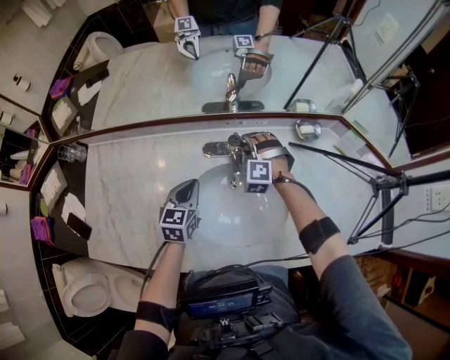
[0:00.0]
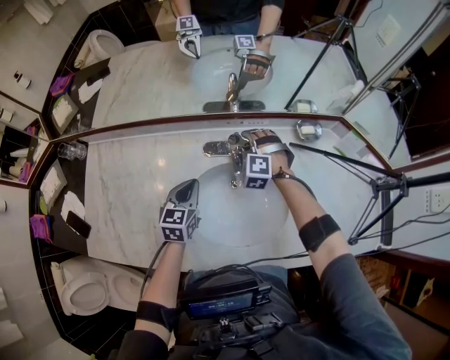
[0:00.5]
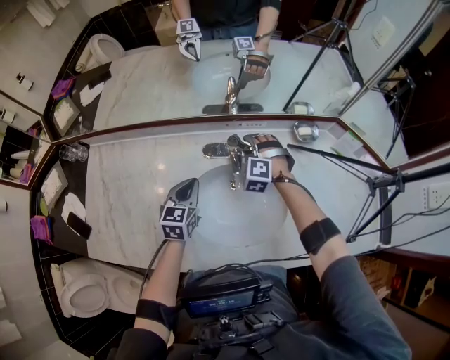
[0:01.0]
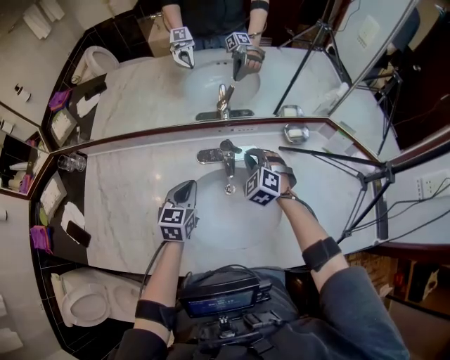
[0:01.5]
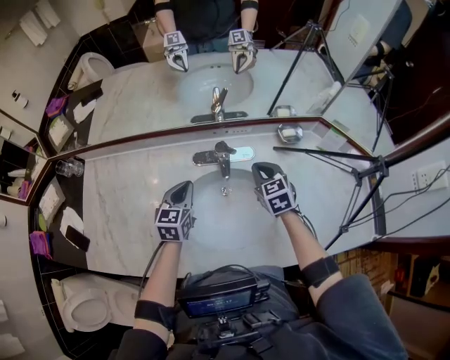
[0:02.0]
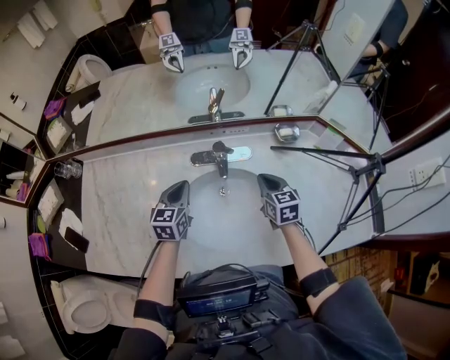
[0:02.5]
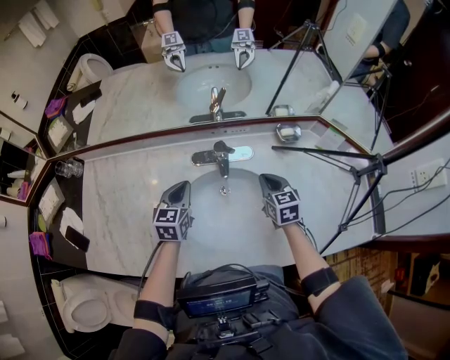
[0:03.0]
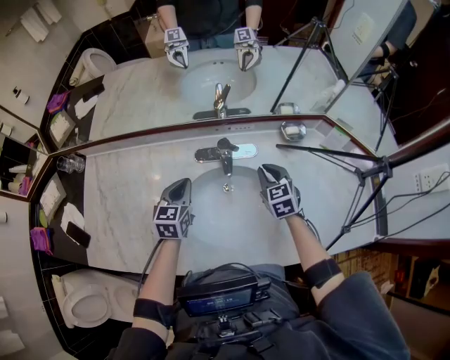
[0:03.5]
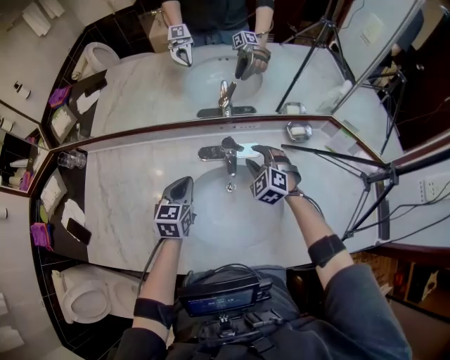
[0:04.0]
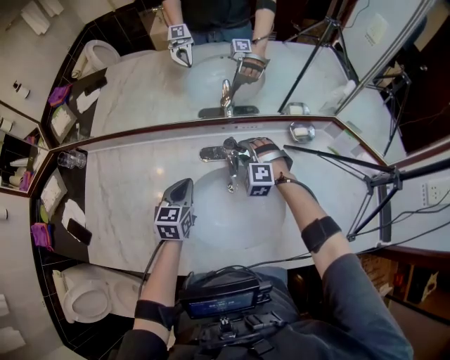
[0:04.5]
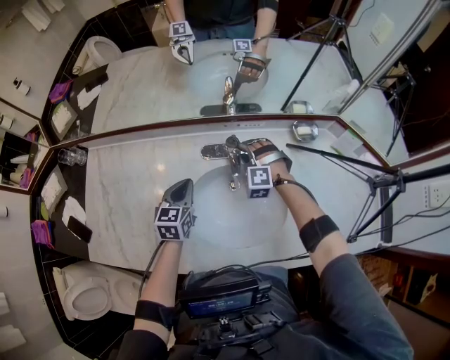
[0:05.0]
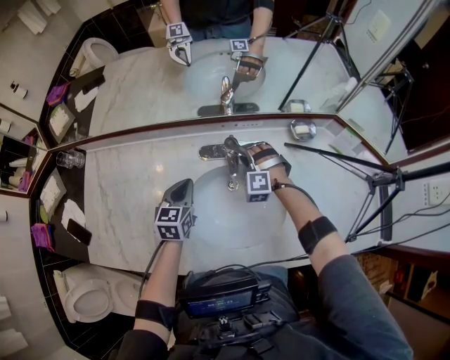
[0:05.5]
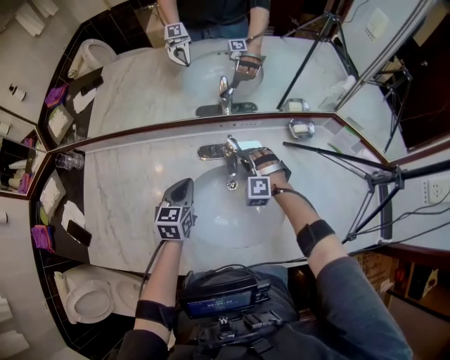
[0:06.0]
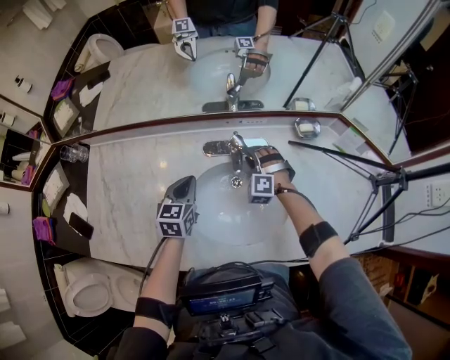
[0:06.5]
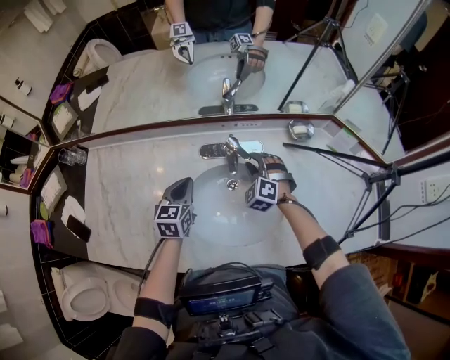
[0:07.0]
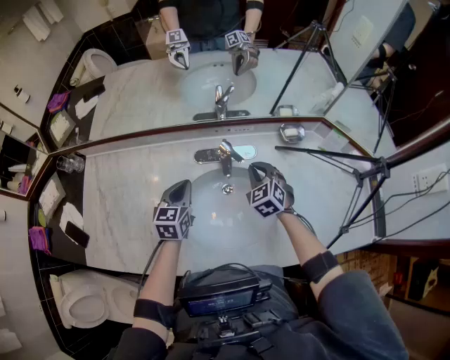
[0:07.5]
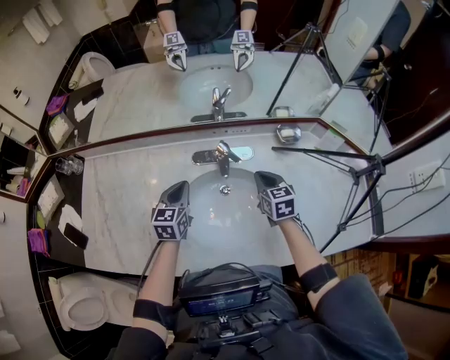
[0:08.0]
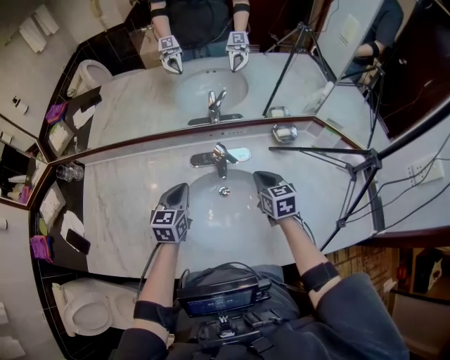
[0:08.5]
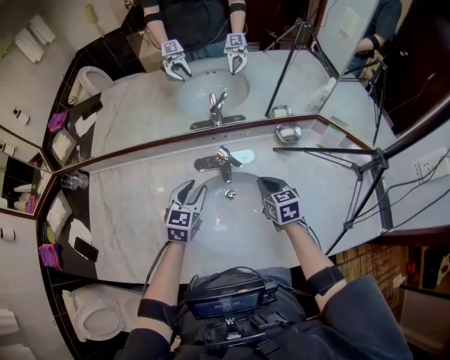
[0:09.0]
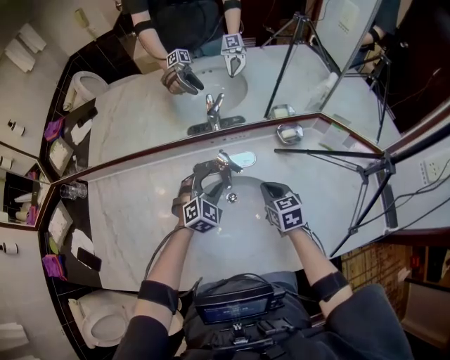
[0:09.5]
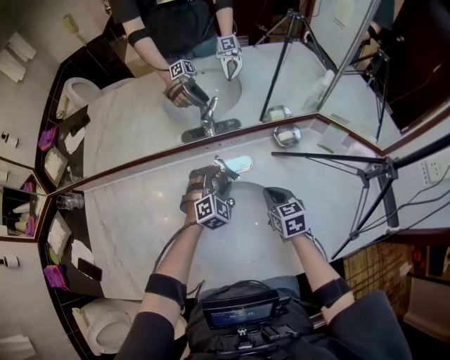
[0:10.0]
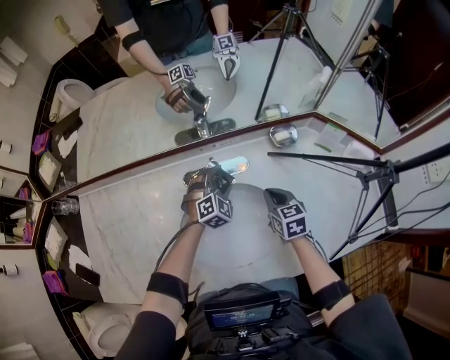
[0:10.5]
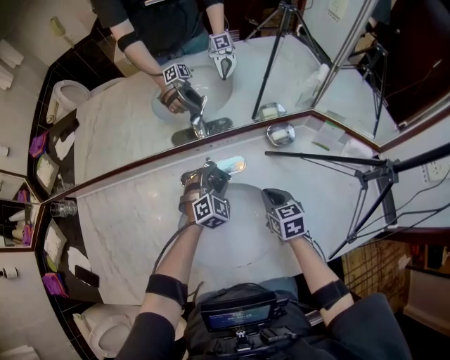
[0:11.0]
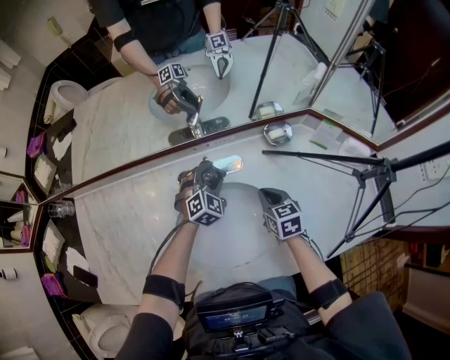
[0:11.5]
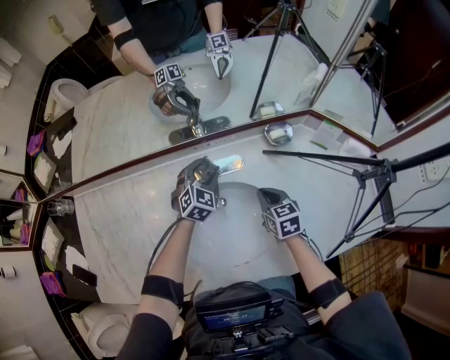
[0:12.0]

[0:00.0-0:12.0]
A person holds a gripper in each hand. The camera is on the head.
0:00.0 to 0:02.0: The right gripper moves to the right, backward and upward, roughly 15 cm, rotates around the line of its fingers by roughly 70 degrees, clockwise from behind, and closes up.
0:02.0 to 0:04.0: The right gripper shifts by approximately 5 cm, rotates around the line of its fingers by approximately 40 degrees, counterclockwise from behind, and opens its fingers.
0:04.0 to 0:06.0: The right gripper goes roughly 10 cm downward, and rotates about 30 degrees.
0:06.0 to 0:08.0: The right gripper shifts approximately 15 cm to the right, upward and backward, rotates around the line of its fingers by about 80 degrees, clockwise from behind, and closes up.
0:08.0 to 0:10.0: The left gripper goes approximately 20 cm to the right, forward and downward, rolls clockwise, seen from behind, by about 60 degrees, and opens up.
0:10.0 to 0:12.0: The grippers make only small movements.

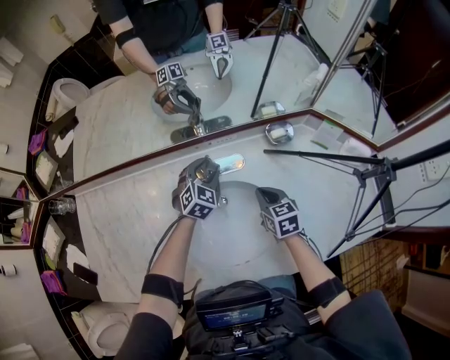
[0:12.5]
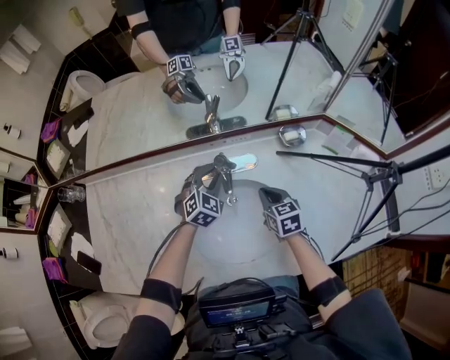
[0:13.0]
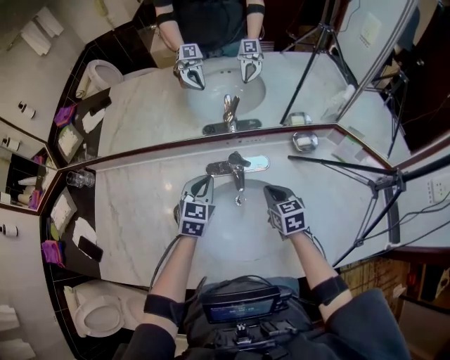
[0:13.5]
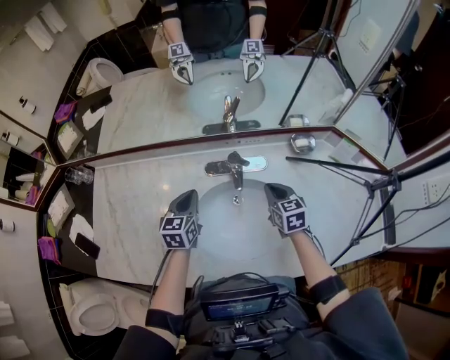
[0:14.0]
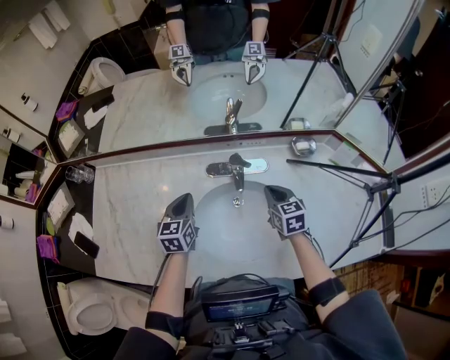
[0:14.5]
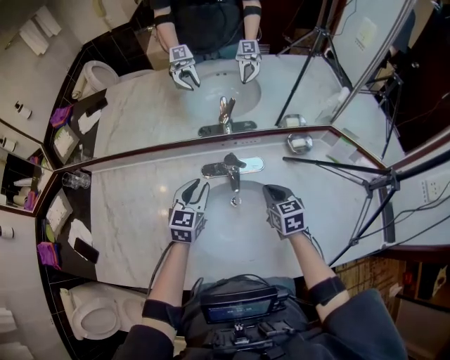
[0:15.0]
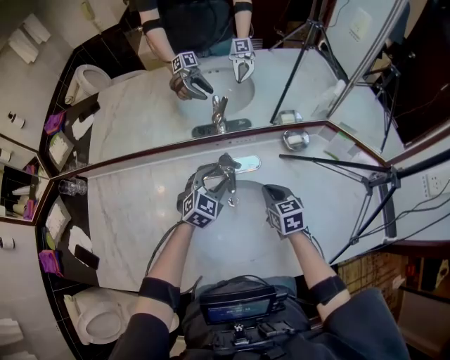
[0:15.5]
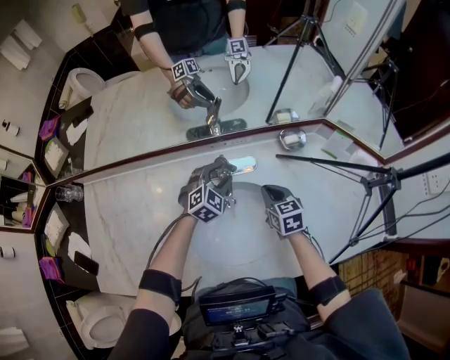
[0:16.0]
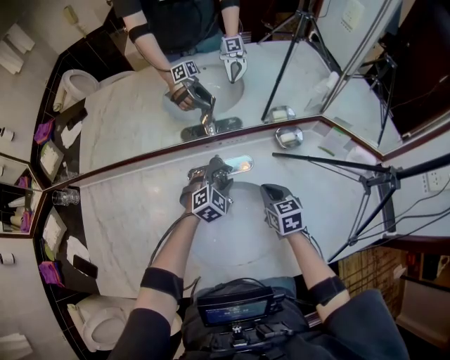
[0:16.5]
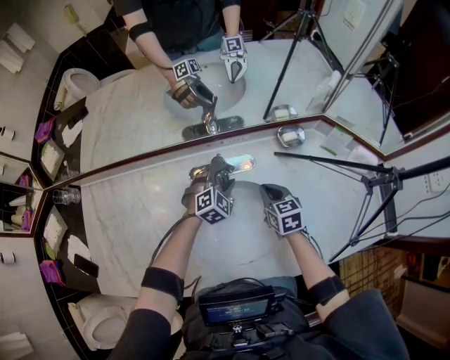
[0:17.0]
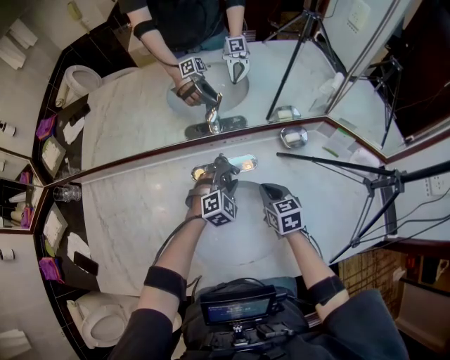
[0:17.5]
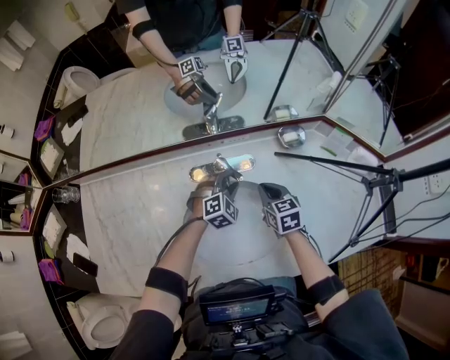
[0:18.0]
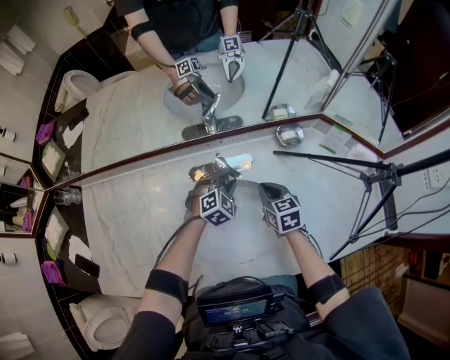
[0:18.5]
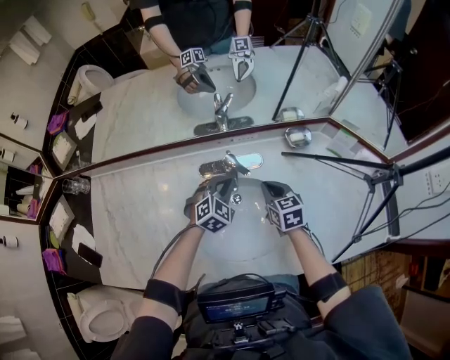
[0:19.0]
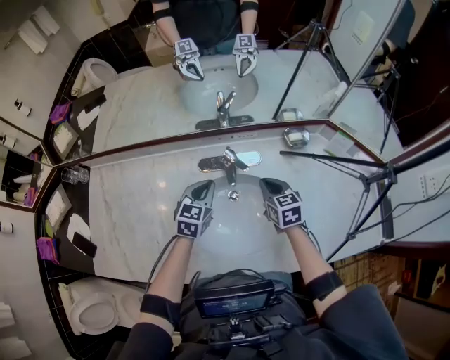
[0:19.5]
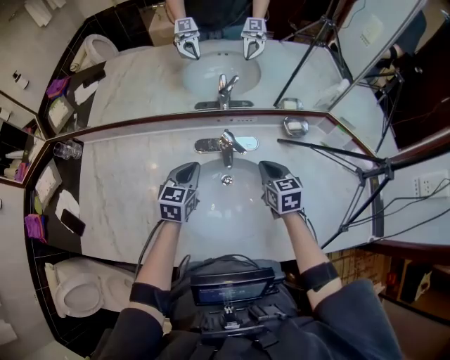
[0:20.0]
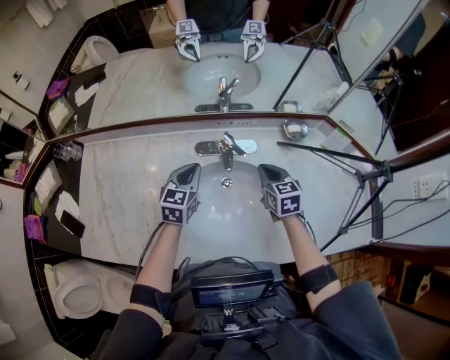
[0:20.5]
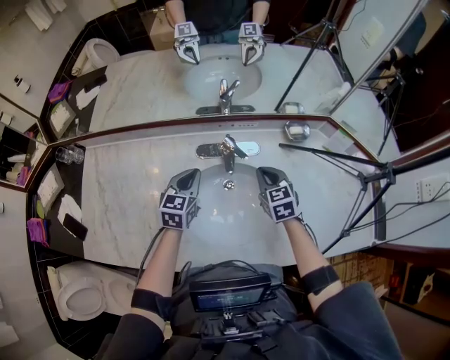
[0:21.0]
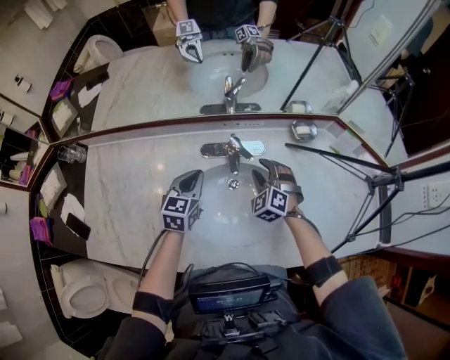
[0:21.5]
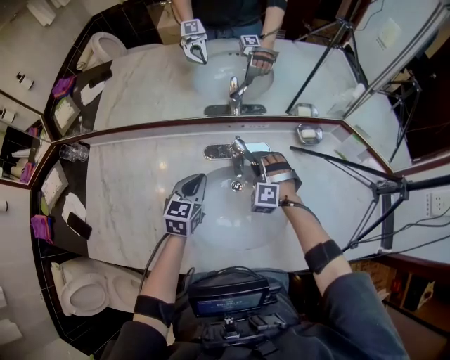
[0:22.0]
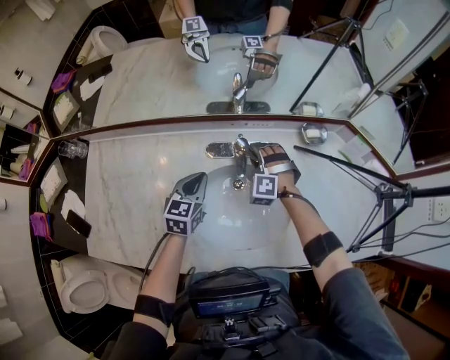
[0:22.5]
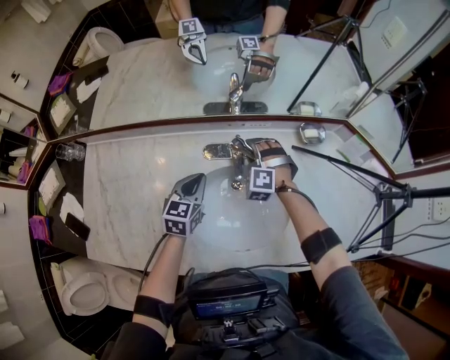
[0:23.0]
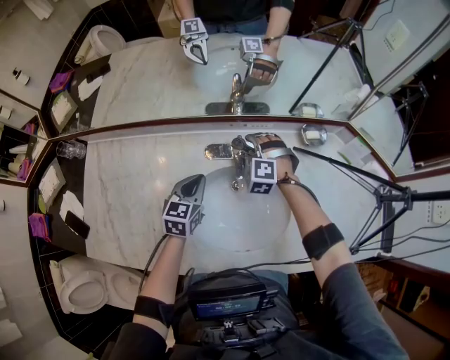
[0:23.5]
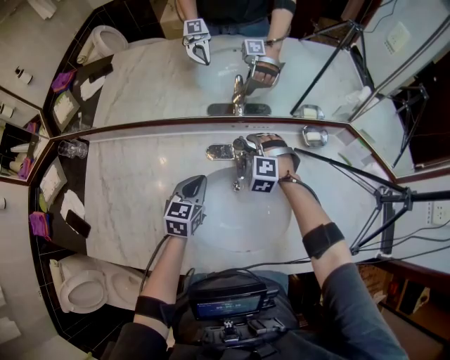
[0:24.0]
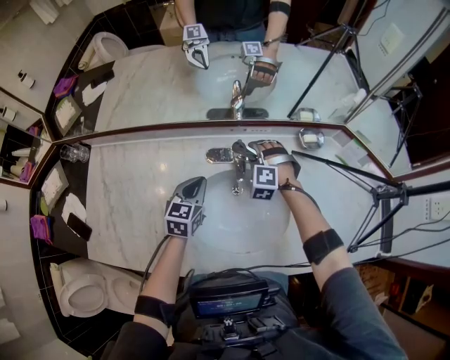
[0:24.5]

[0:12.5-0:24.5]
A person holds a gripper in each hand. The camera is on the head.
0:12.5 to 0:14.5: The left gripper heads to the left and backward, covering approximately 25 cm, rolls counterclockwise, seen from behind, by approximately 50 degrees, and closes up. Meanwhile the right gripper heads to the left, covering roughly 5 cm.
0:14.5 to 0:16.5: The right gripper moves about 5 cm. Meanwhile the left gripper goes some 25 cm to the right, forward and downward, rolls clockwise, seen from behind, by some 60 degrees, and opens.
0:16.5 to 0:18.5: There are only small adjustments of the grippers.
0:18.5 to 0:20.5: The right gripper is displaced upward by about 5 cm; the left gripper travels to the left, upward and backward by roughly 20 cm, rotates around the line of its fingers by some 50 degrees, counterclockwise from behind, and closes.
0:20.5 to 0:22.5: The right gripper goes about 15 cm to the left, forward and downward, rotates around the line of its fingers by about 80 degrees, counterclockwise from behind, and opens.
0:22.5 to 0:24.5: The grippers make only small movements.

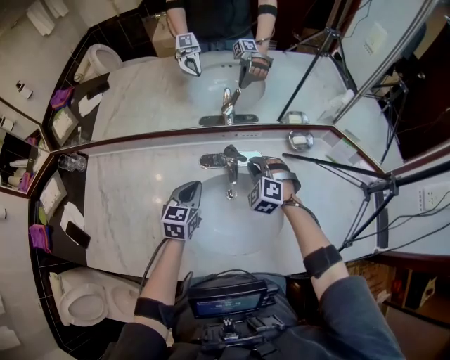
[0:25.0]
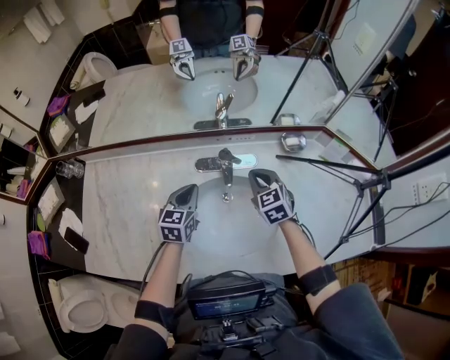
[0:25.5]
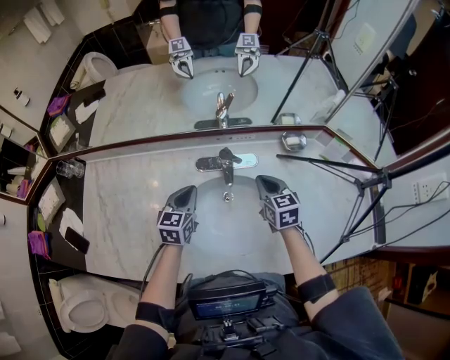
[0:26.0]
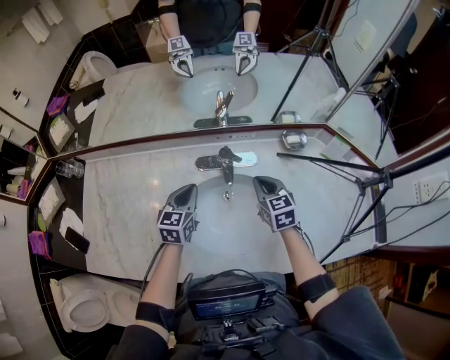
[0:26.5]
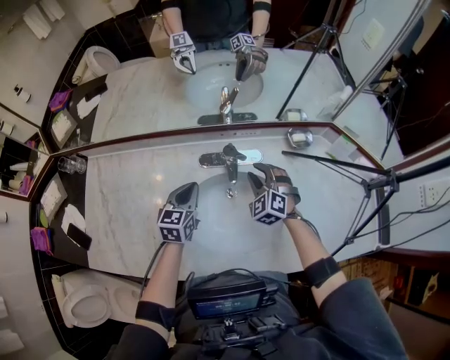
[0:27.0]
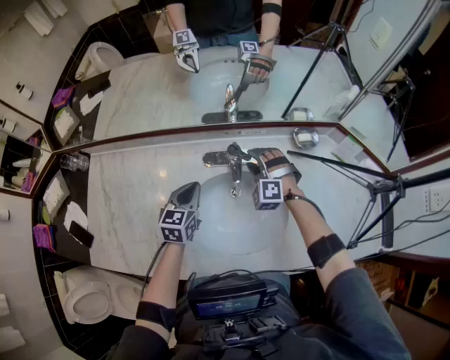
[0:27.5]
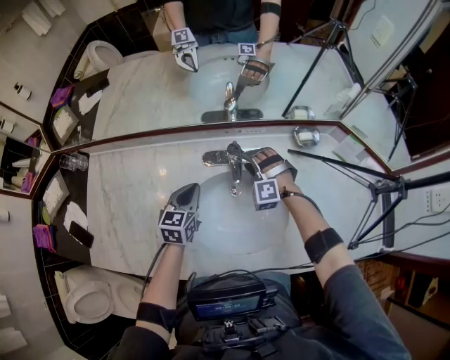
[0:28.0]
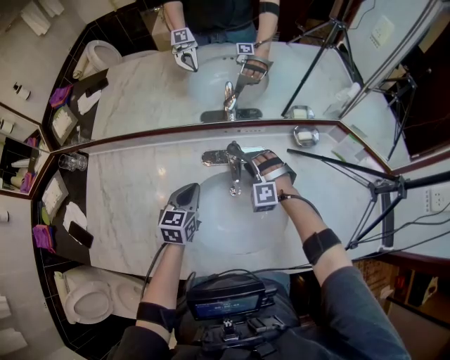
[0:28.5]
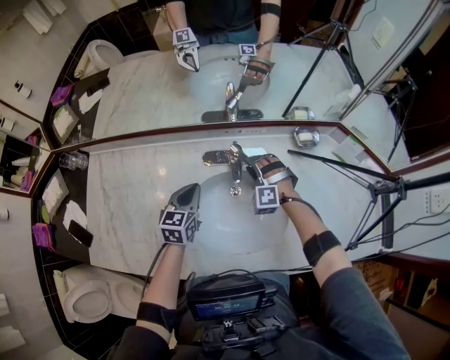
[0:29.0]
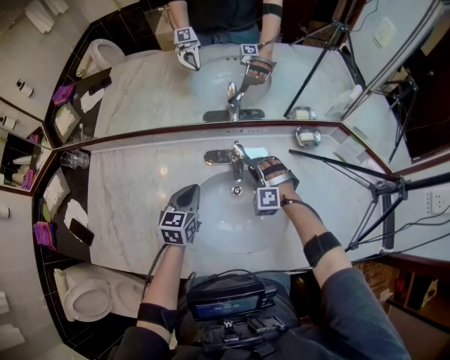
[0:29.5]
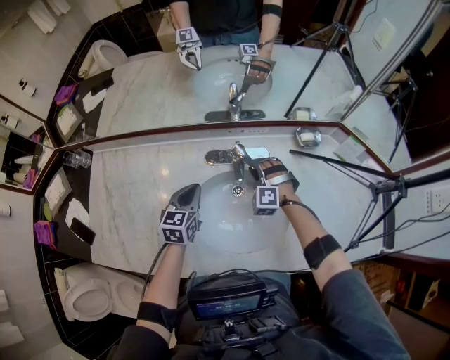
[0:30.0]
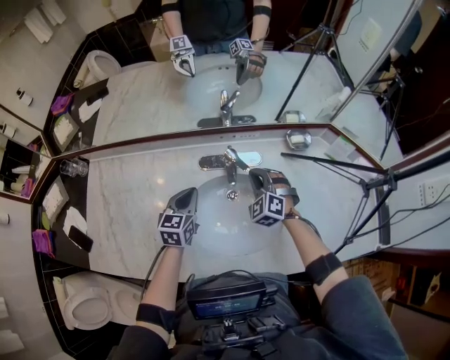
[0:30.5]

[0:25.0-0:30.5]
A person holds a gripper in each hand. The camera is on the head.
0:27.0 to 0:28.5: The right gripper shifts some 5 cm downward, and turns by approximately 40 degrees.
0:28.5 to 0:30.5: The right gripper shifts by about 5 cm, changes its angle by about 30 degrees, and closes.
